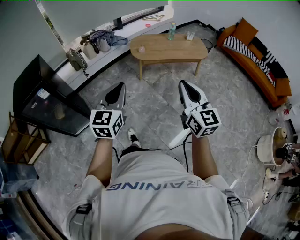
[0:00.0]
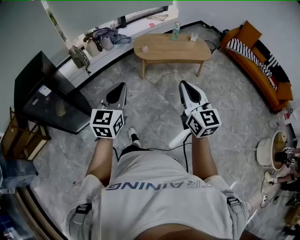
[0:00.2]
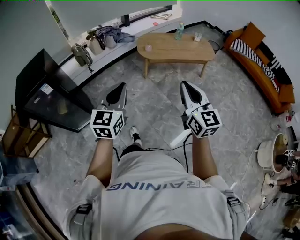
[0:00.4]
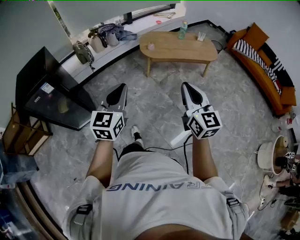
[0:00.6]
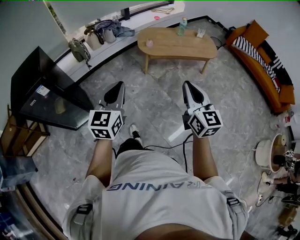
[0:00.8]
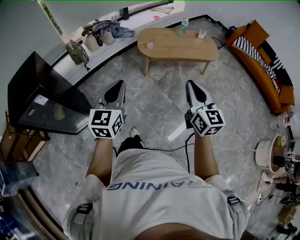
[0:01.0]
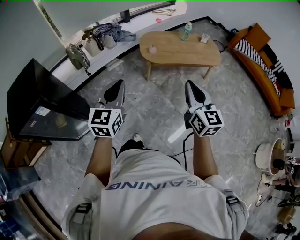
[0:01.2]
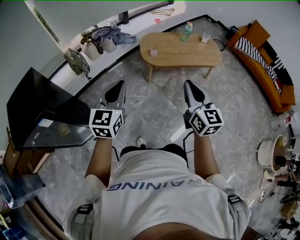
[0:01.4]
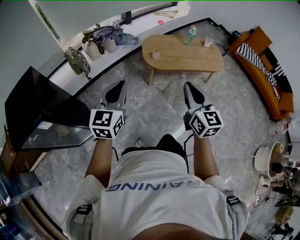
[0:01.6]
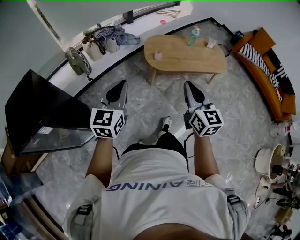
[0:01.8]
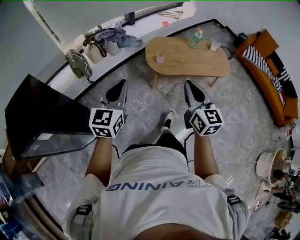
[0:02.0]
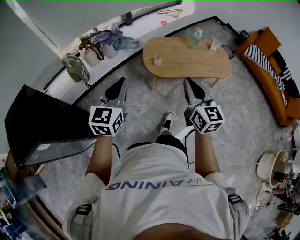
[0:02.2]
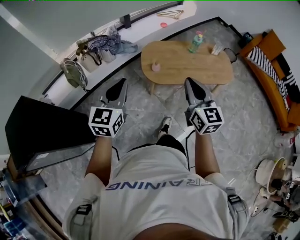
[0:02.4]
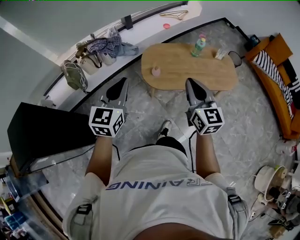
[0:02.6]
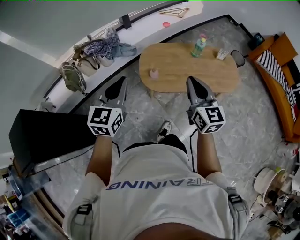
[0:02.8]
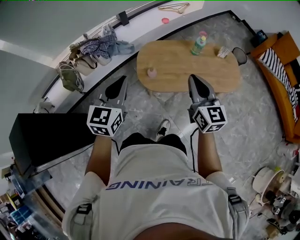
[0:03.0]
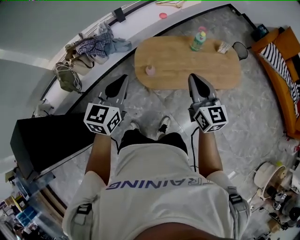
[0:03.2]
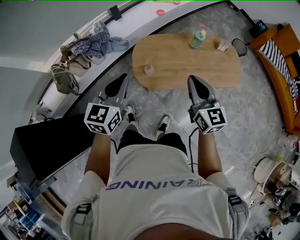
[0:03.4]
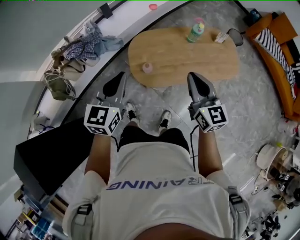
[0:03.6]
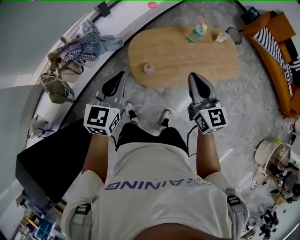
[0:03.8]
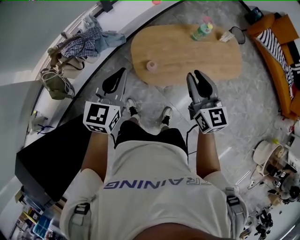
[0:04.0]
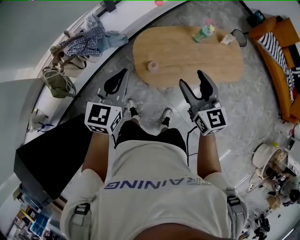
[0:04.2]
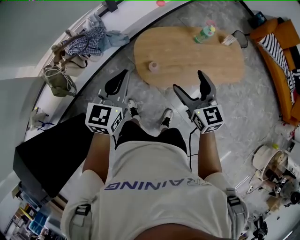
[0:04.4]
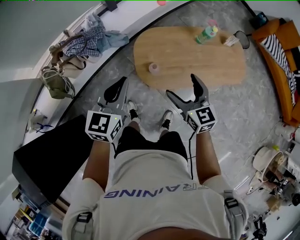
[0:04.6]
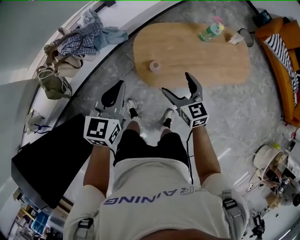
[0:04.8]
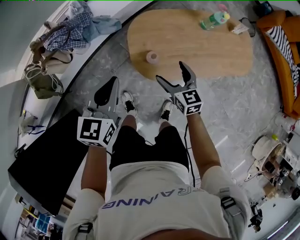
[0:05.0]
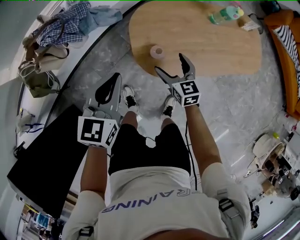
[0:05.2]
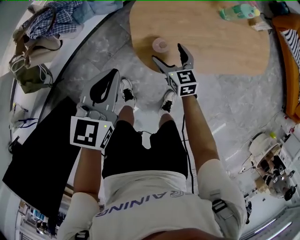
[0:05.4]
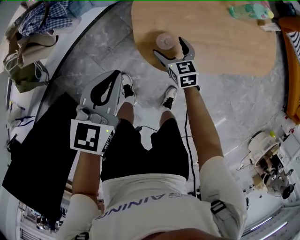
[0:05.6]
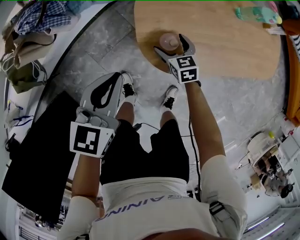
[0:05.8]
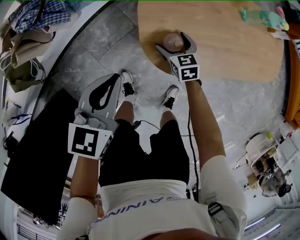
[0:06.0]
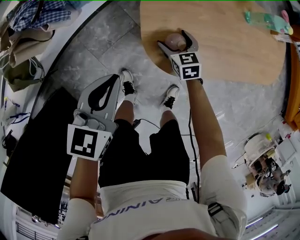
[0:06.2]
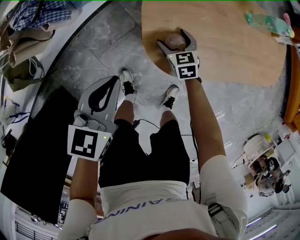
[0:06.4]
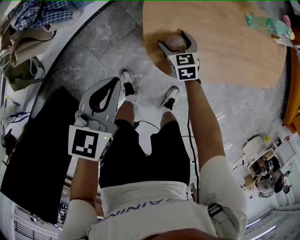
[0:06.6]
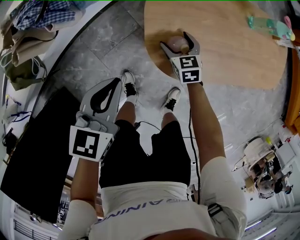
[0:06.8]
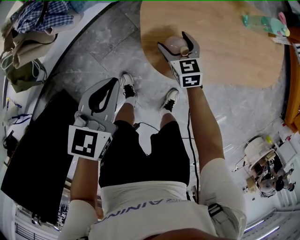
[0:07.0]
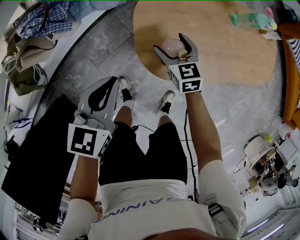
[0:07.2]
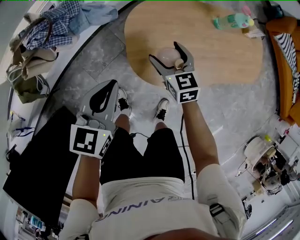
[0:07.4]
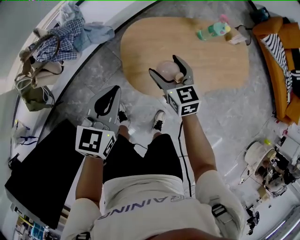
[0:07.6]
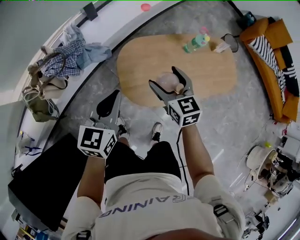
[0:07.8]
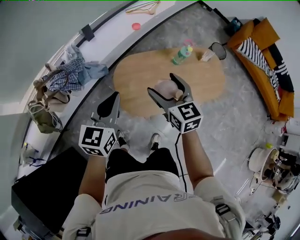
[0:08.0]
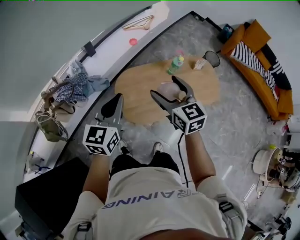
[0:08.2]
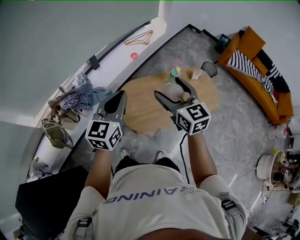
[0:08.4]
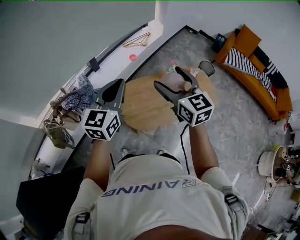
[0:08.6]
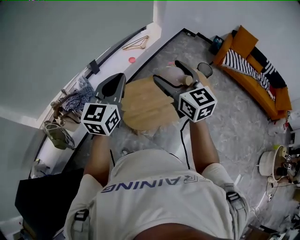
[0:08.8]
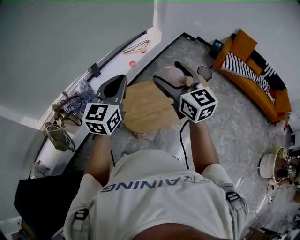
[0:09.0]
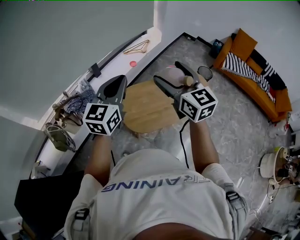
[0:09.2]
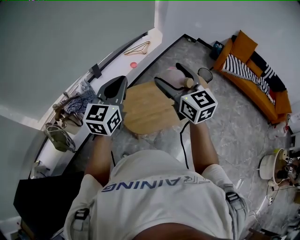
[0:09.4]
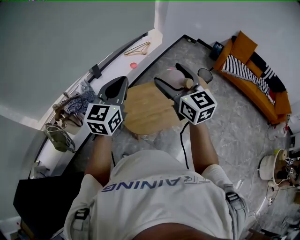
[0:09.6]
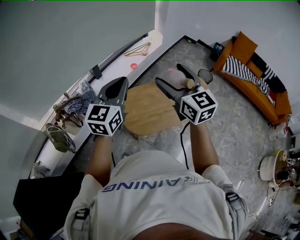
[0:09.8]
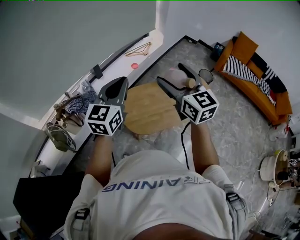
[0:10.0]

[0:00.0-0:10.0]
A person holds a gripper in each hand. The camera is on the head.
0:00.0 to 0:01.4: Both grippers travel together forward and to the left, roughly 25 cm.
0:01.4 to 0:02.8: Both grippers travel together forward, about 35 cm.
0:02.8 to 0:04.2: The left gripper travels forward and downward by approximately 20 cm; the right gripper goes about 15 cm forward, downward and to the left, and opens up.
0:04.2 to 0:05.8: The left gripper is displaced downward by approximately 30 cm; the right gripper shifts about 50 cm downward, swivels about 30 degrees, and opens up.
0:05.8 to 0:07.2: The right gripper goes some 10 cm upward.
0:07.2 to 0:08.6: Both grippers move upward, about 50 cm. The left gripper swivels about 30 degrees, while the right gripper points its fingers approximately 30 degrees further upward.
0:08.6 to 0:10.0: The right gripper goes about 5 cm upward.

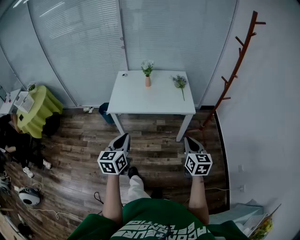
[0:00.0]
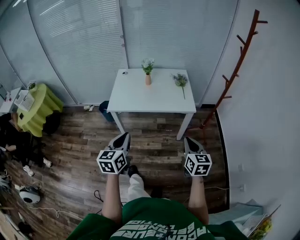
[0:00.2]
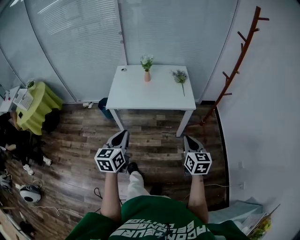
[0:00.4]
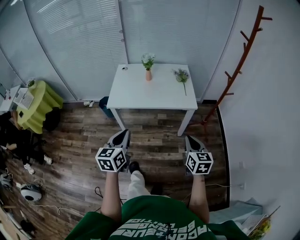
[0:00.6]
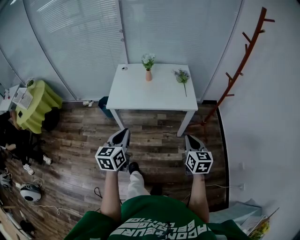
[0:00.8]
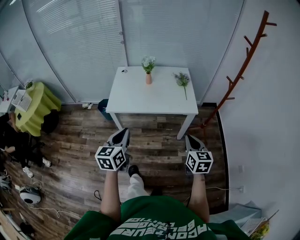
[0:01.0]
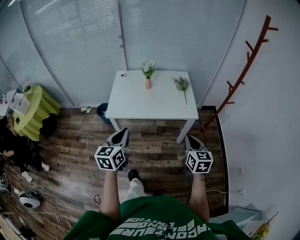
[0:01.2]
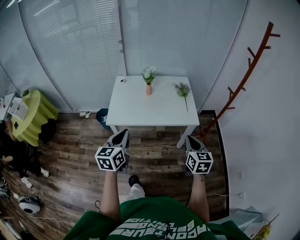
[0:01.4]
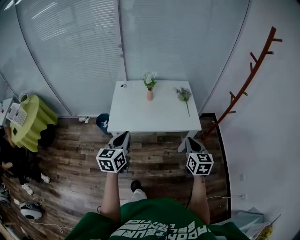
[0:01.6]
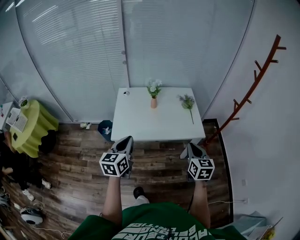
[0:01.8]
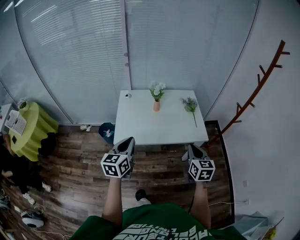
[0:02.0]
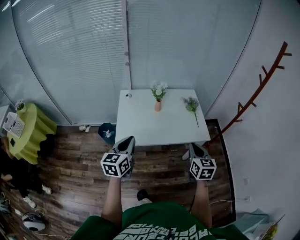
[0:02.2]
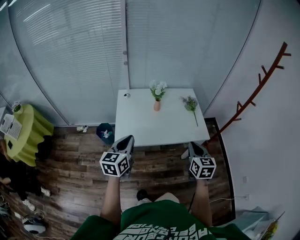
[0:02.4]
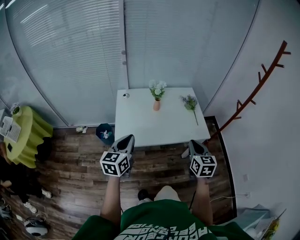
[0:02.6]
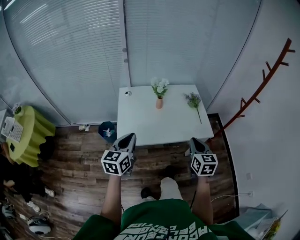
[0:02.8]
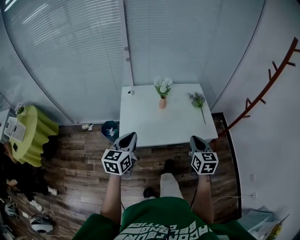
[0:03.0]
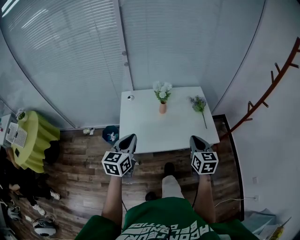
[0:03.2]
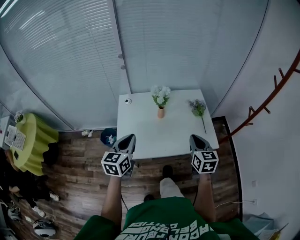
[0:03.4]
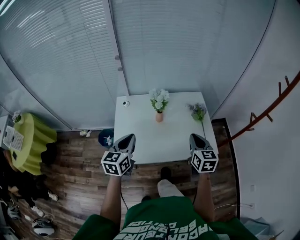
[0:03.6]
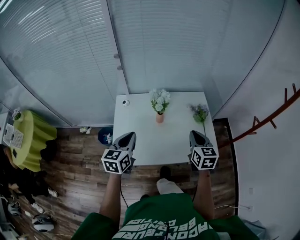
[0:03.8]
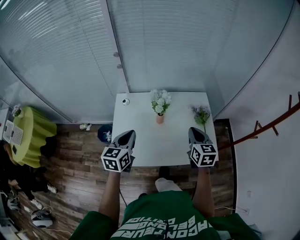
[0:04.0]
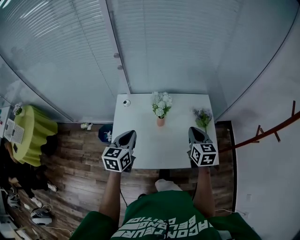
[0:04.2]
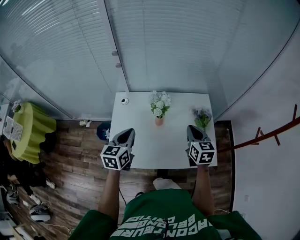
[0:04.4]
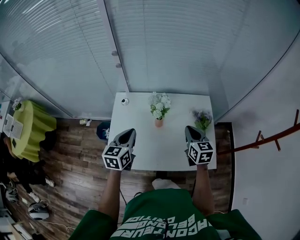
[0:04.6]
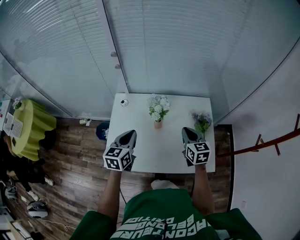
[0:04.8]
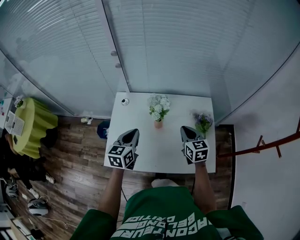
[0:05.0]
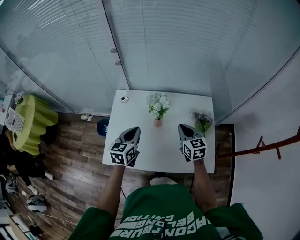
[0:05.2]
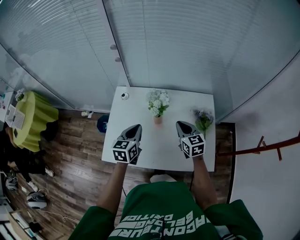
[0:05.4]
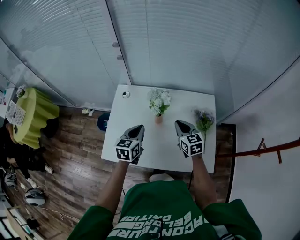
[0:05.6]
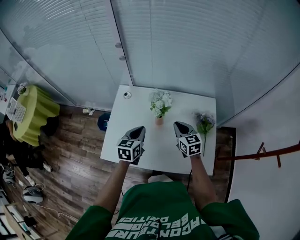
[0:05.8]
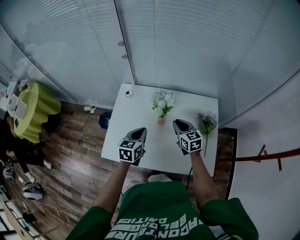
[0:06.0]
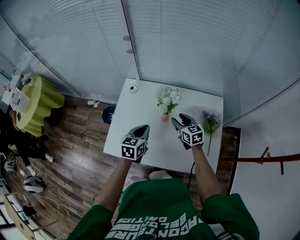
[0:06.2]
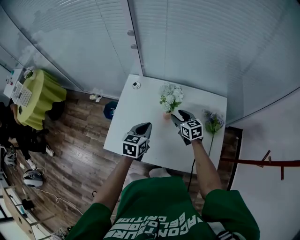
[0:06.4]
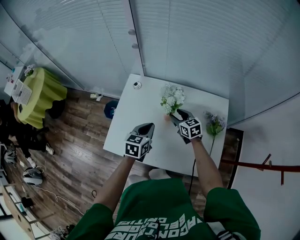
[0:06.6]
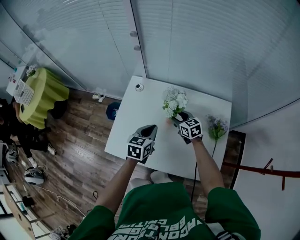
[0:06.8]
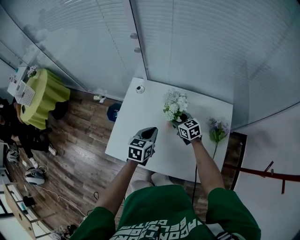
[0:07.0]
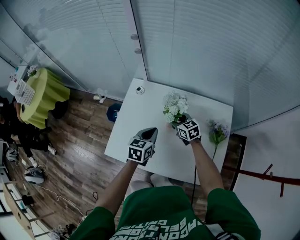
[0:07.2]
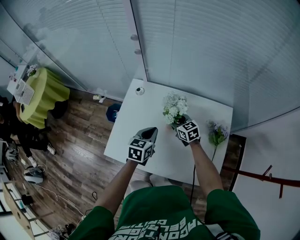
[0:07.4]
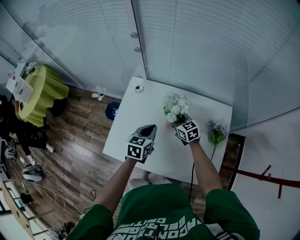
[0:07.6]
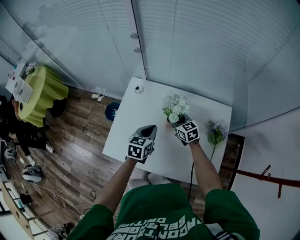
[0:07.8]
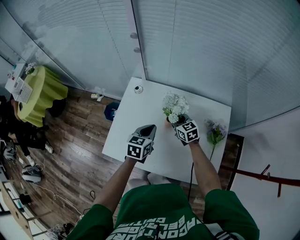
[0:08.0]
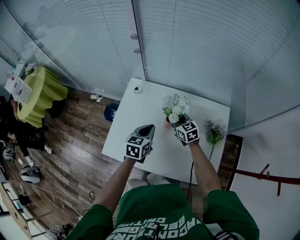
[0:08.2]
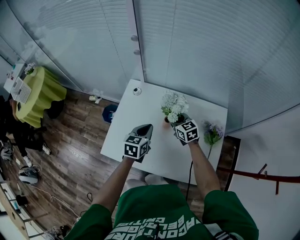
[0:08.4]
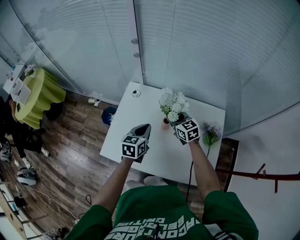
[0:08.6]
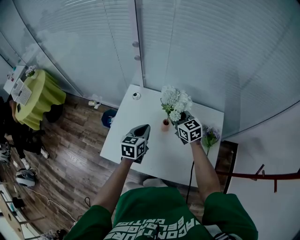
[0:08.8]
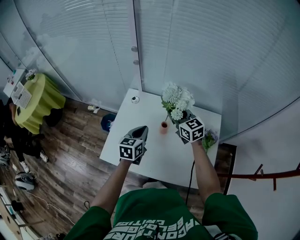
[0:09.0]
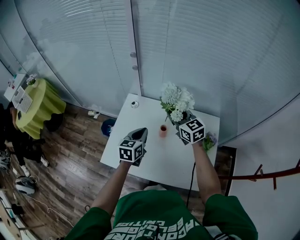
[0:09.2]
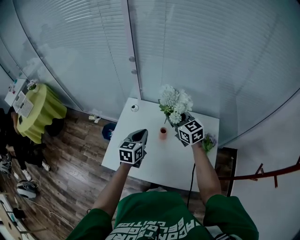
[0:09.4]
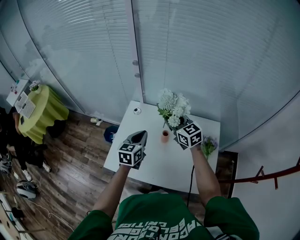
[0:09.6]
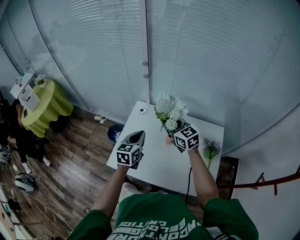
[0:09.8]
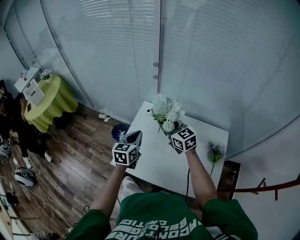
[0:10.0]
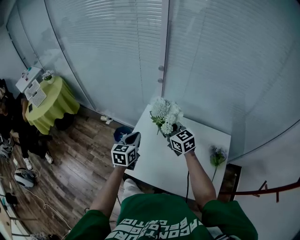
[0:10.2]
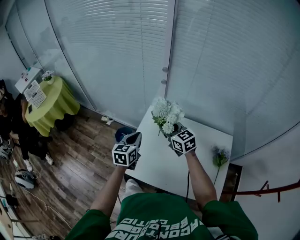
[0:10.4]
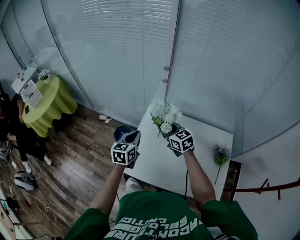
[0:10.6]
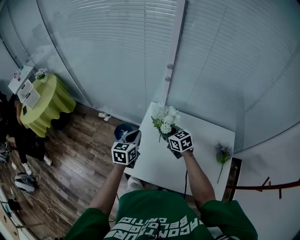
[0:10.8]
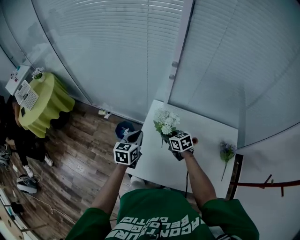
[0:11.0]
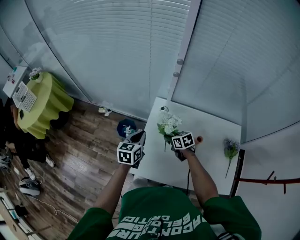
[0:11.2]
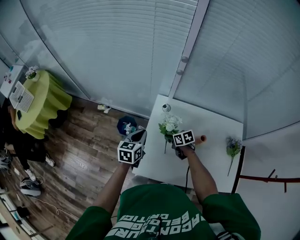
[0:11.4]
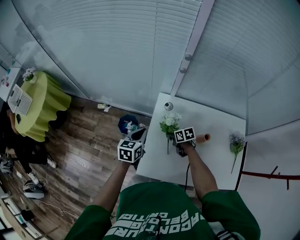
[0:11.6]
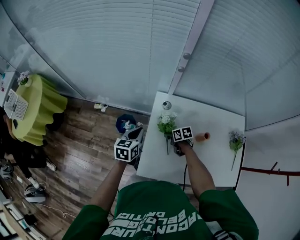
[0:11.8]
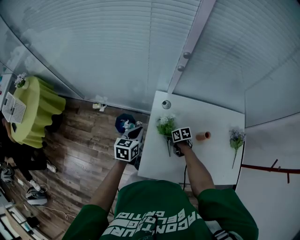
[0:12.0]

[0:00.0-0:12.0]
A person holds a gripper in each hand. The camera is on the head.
0:00.0 to 0:01.6: Both grippers travel together forward, about 20 cm.
0:01.6 to 0:03.0: Both grippers travel together forward and to the left, about 15 cm.
0:03.0 to 0:04.4: Both grippers travel together forward, roughly 25 cm.
0:04.4 to 0:06.0: The left gripper travels downward and to the right by about 10 cm. Meanwhile the right gripper heads downward and forward, covering about 15 cm, and rotates some 30 degrees.
0:06.0 to 0:07.6: The right gripper shifts some 15 cm forward, downward and to the left, and opens up, while the left gripper shifts by about 5 cm.
0:07.6 to 0:09.0: The right gripper goes about 15 cm upward, while the left gripper goes approximately 5 cm upward.
0:09.0 to 0:10.4: The grippers both shift to the left by some 15 cm.
0:10.4 to 0:12.0: The left gripper travels forward, downward and to the left by roughly 20 cm, and rotates approximately 20 degrees. Meanwhile the right gripper travels downward by roughly 35 cm, and angles its fingers downward, by some 40 degrees.

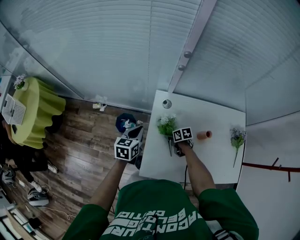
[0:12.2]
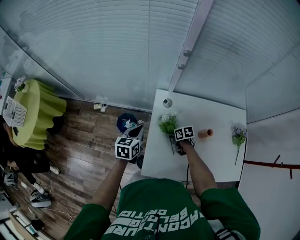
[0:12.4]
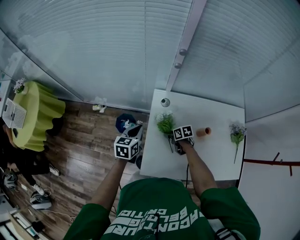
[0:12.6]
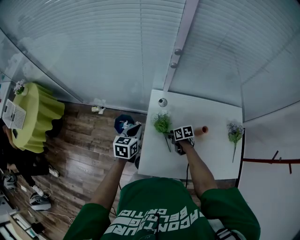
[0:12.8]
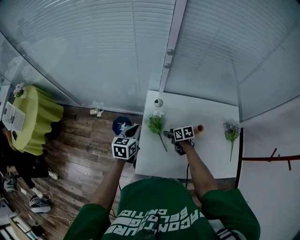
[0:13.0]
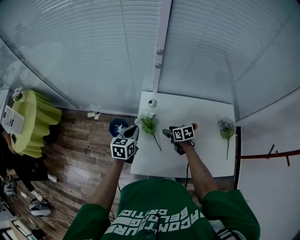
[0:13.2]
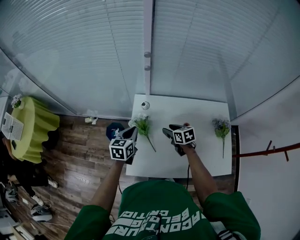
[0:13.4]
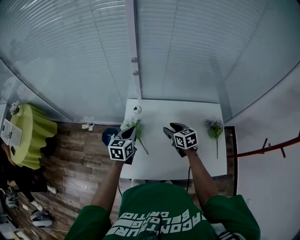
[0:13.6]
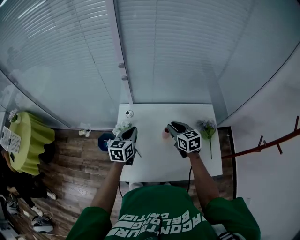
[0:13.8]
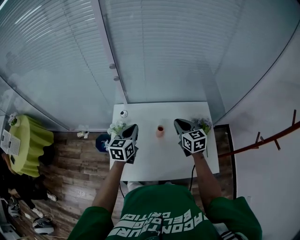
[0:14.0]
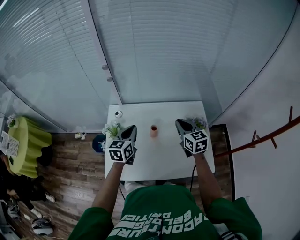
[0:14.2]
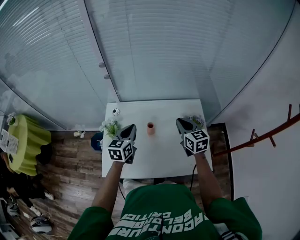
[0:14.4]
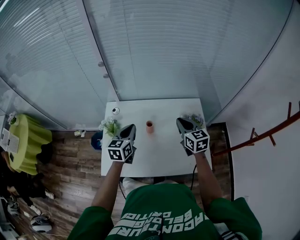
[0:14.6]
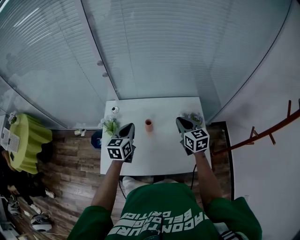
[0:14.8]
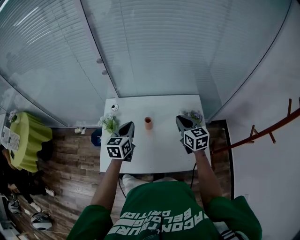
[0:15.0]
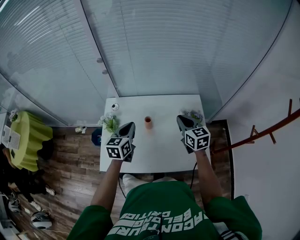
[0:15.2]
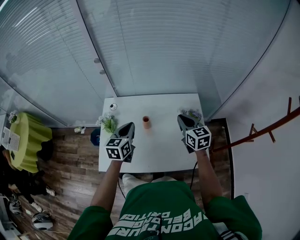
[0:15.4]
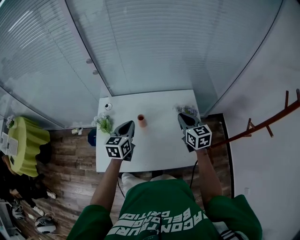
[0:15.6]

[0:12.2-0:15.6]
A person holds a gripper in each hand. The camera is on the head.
0:12.2 to 0:13.8: The right gripper travels upward and to the right by roughly 35 cm, swivels roughly 50 degrees, and opens and closes again, while the left gripper goes approximately 20 cm to the right and upward.
0:13.8 to 0:15.6: The grippers both shift to the right by some 20 cm.
